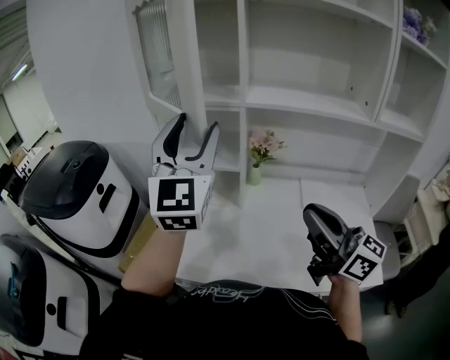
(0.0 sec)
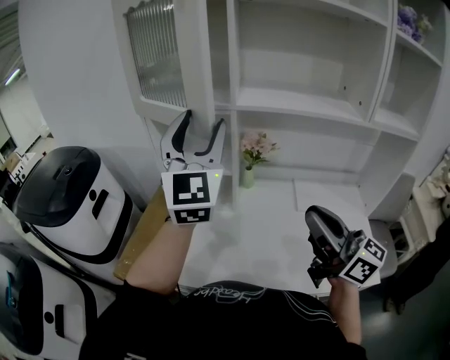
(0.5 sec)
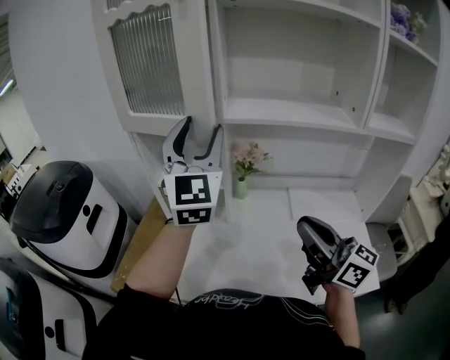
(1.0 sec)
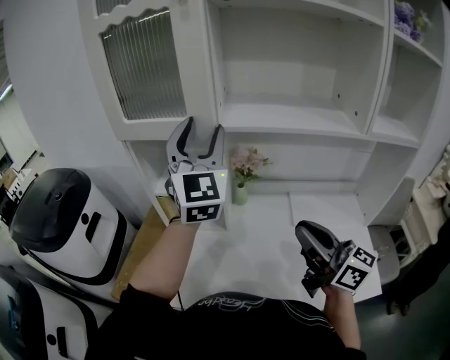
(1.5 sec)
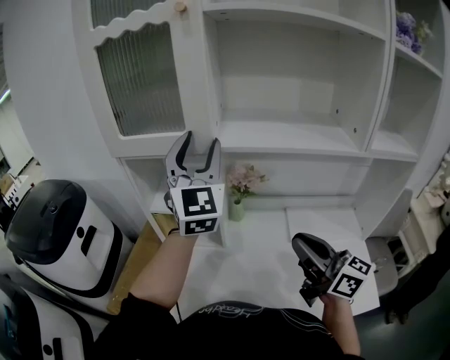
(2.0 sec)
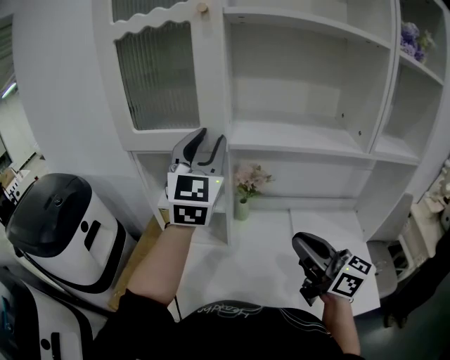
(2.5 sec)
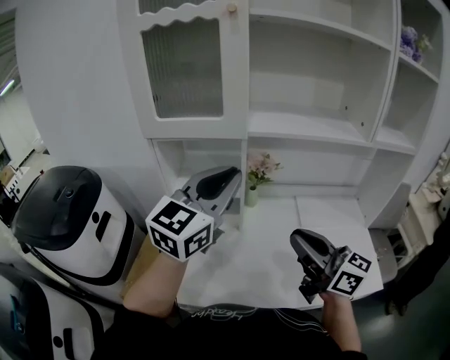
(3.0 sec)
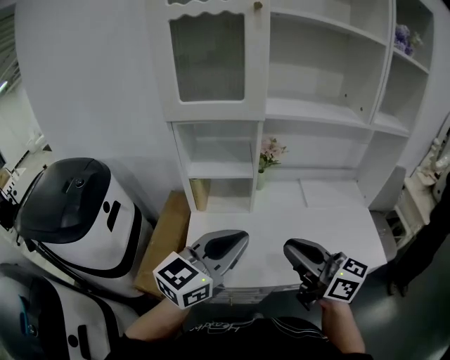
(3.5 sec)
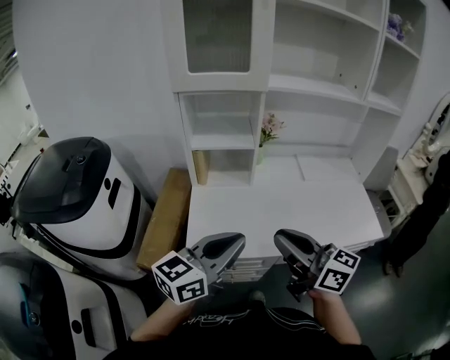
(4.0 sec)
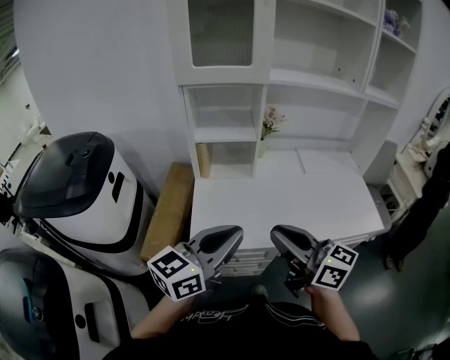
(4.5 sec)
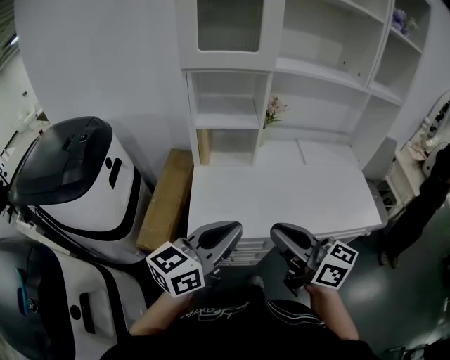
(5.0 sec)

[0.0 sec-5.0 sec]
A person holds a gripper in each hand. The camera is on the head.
0.0 sec to 2.5 sec: The right gripper shifts roughly 10 cm forward, while the left gripper is displaced forward and to the right by some 15 cm, and closes up.
2.5 sec to 5.0 sec: The right gripper is displaced backward and to the left by roughly 35 cm; the left gripper goes some 50 cm backward and downward, swivels roughly 60 degrees, and closes its fingers.

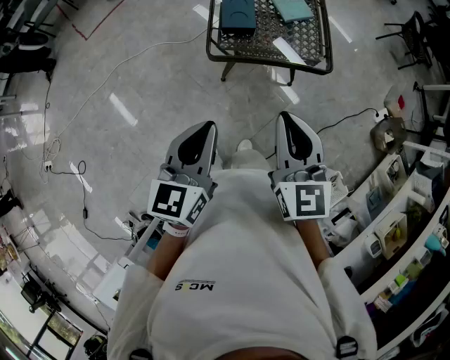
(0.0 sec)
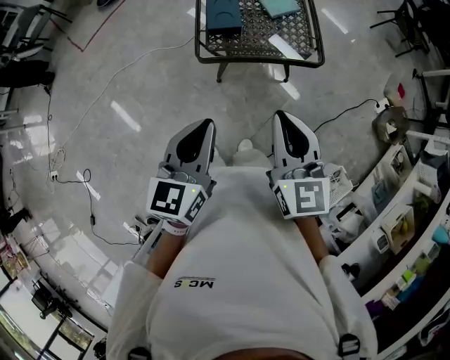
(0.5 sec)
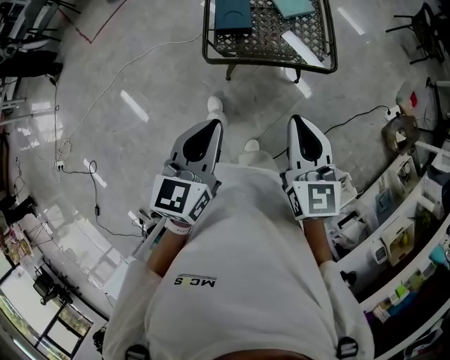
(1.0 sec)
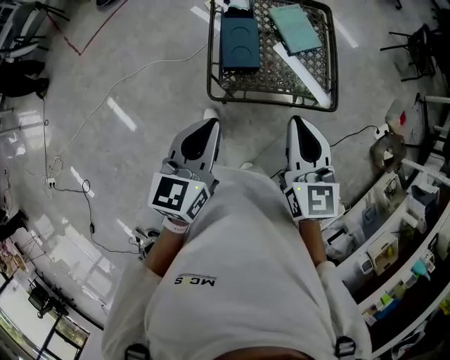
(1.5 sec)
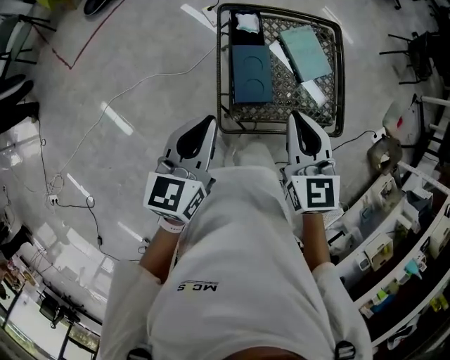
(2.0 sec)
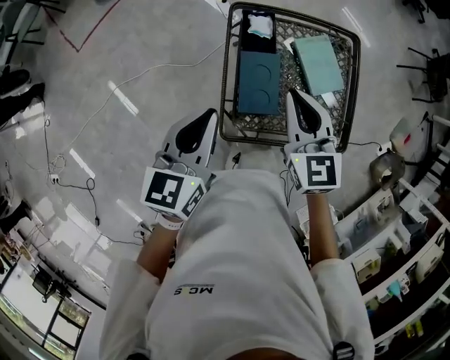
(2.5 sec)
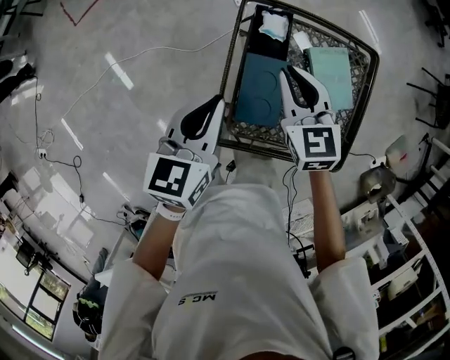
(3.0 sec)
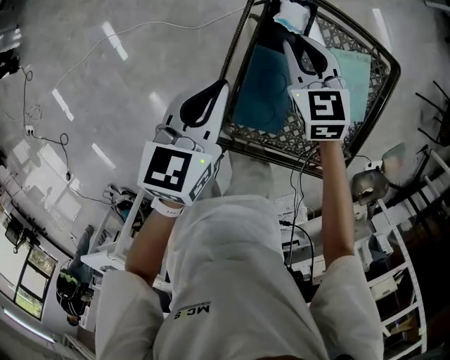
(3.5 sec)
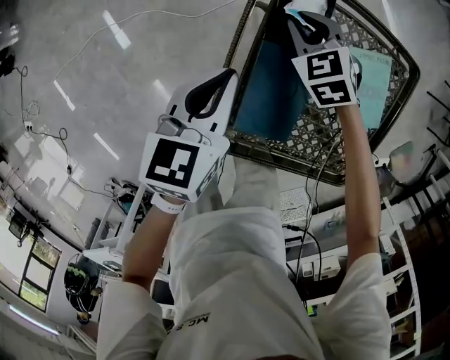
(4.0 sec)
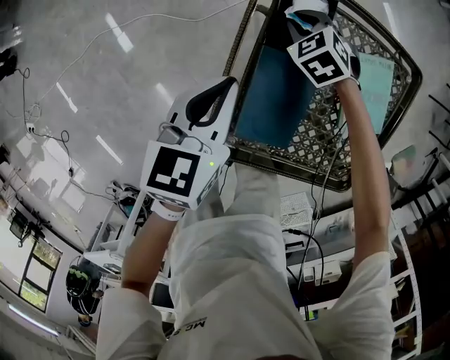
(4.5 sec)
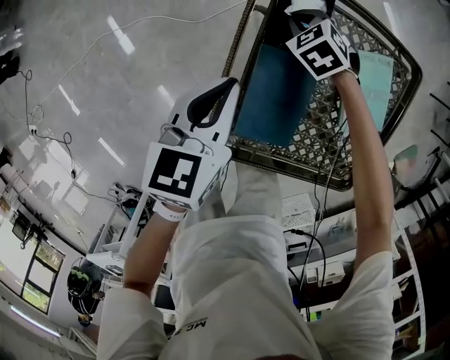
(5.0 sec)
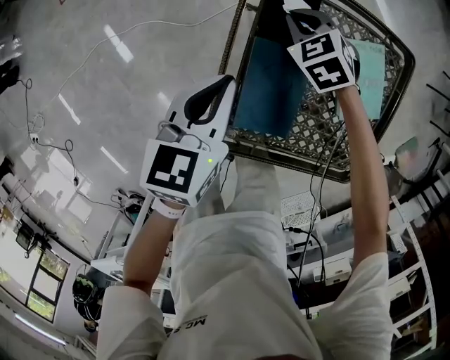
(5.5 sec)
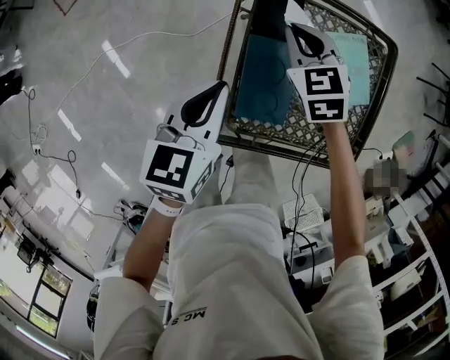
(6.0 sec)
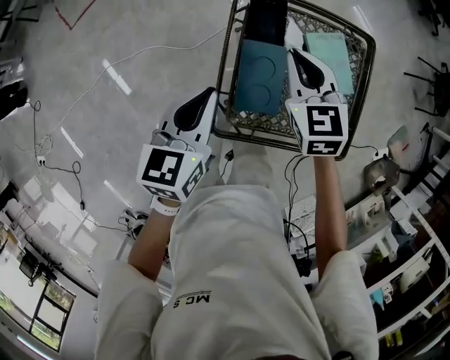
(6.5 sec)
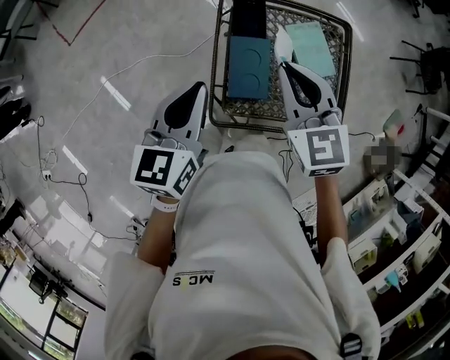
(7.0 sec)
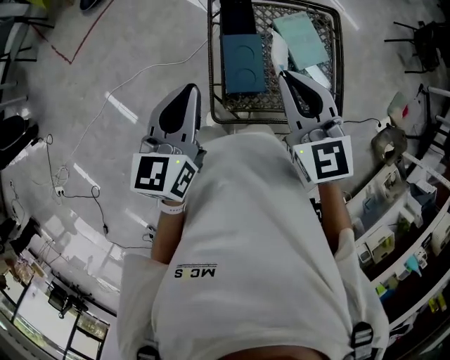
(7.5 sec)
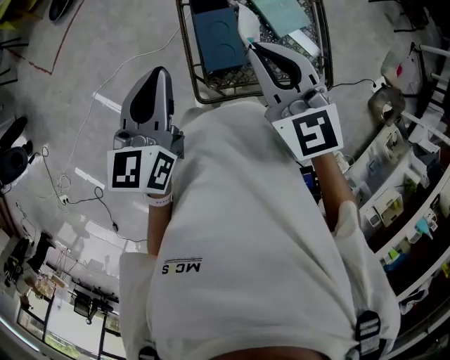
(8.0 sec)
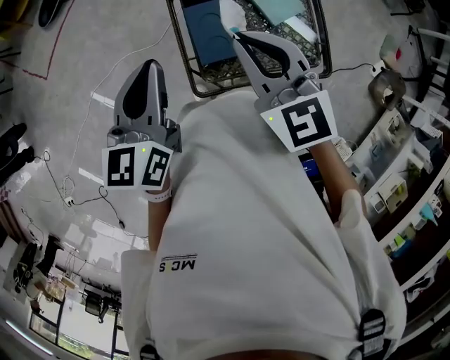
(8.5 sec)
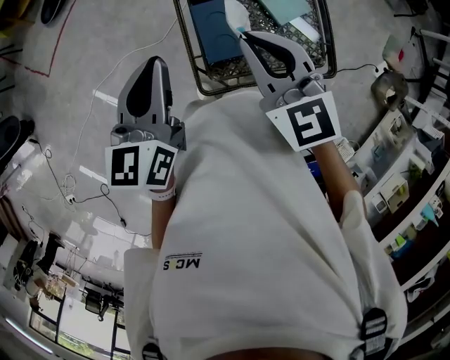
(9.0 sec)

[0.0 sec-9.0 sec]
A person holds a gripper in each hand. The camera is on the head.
0.0 sec to 2.0 sec: The grippers both shift forward by approximately 35 cm.
2.0 sec to 4.5 sec: The left gripper is displaced downward and forward by some 30 cm, and rotates approximately 20 degrees. The right gripper travels downward and forward by about 50 cm, and tilts its fingers about 40 degrees downward.
4.5 sec to 7.0 sec: The left gripper travels upward and backward by approximately 25 cm, while the right gripper moves upward and backward, about 40 cm, and tilts its fingers about 40 degrees upward.
7.0 sec to 9.0 sec: The left gripper moves upward, about 5 cm, while the right gripper moves backward, roughly 5 cm.

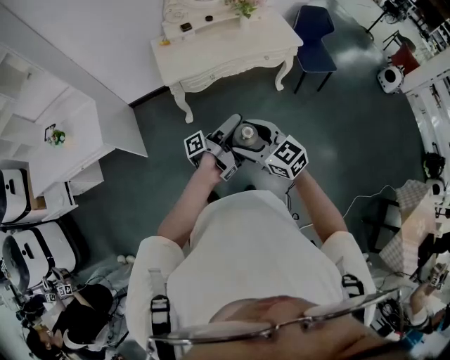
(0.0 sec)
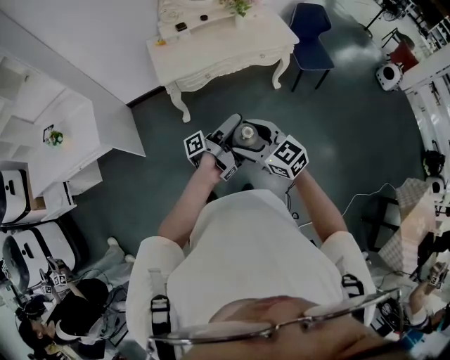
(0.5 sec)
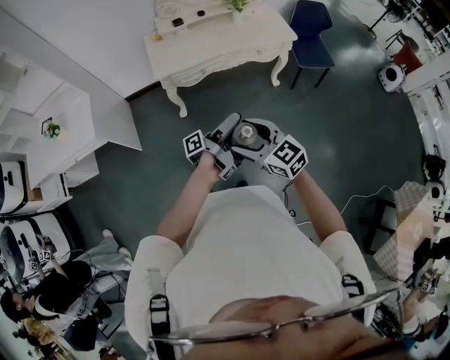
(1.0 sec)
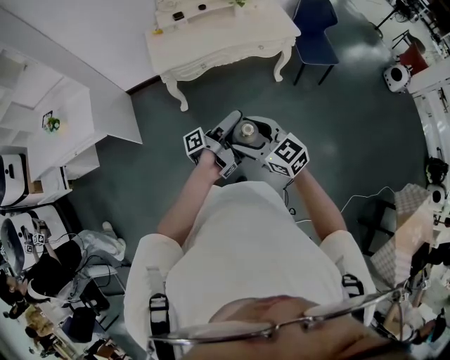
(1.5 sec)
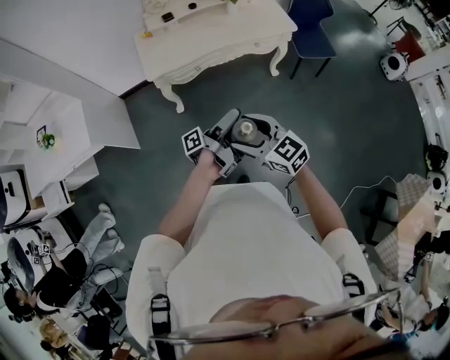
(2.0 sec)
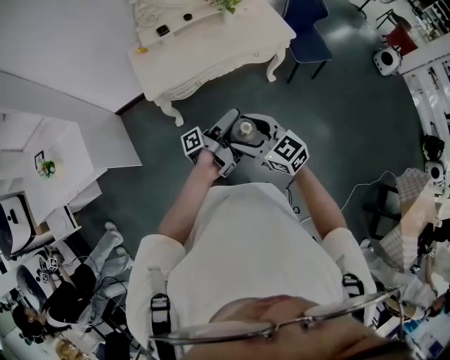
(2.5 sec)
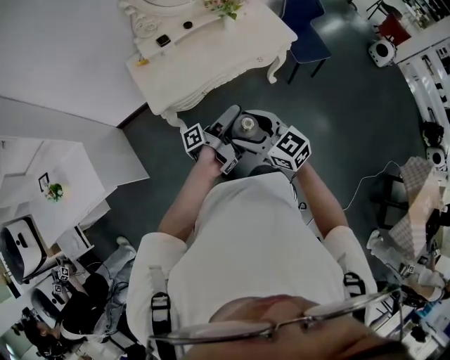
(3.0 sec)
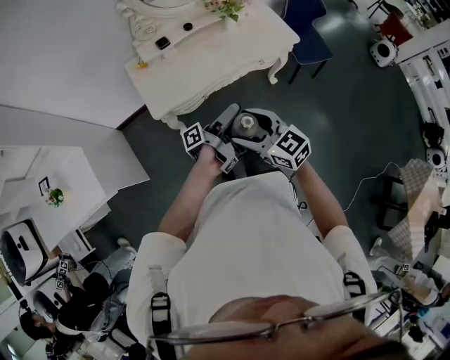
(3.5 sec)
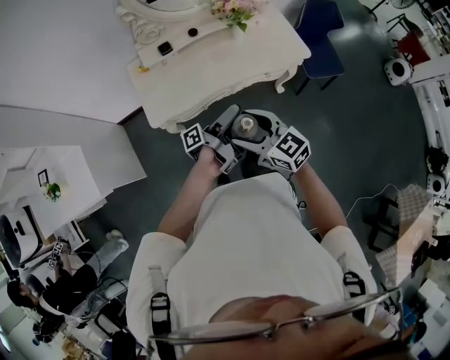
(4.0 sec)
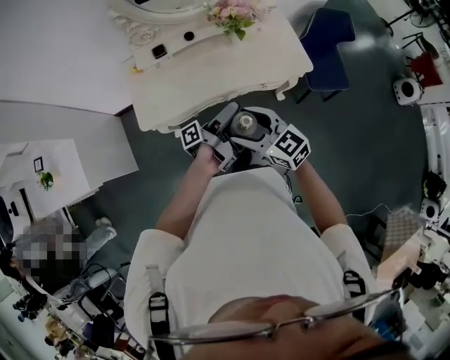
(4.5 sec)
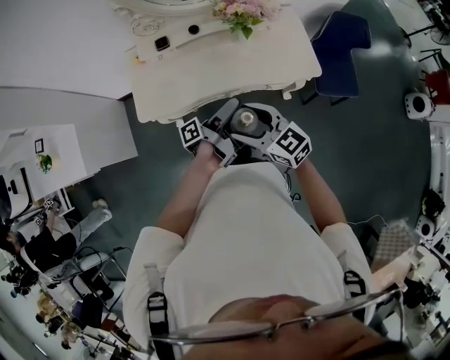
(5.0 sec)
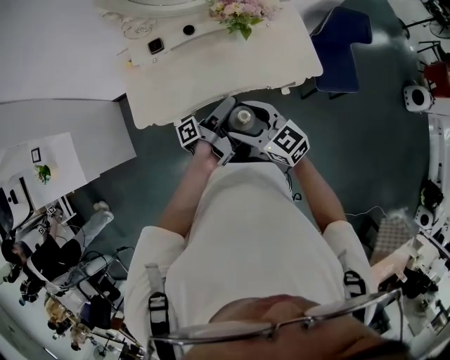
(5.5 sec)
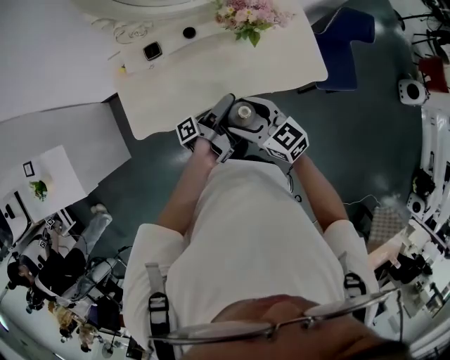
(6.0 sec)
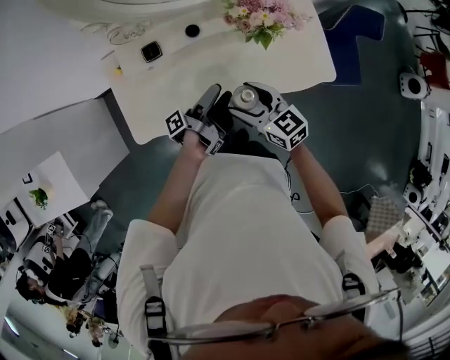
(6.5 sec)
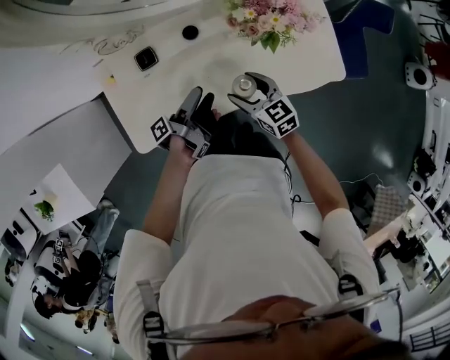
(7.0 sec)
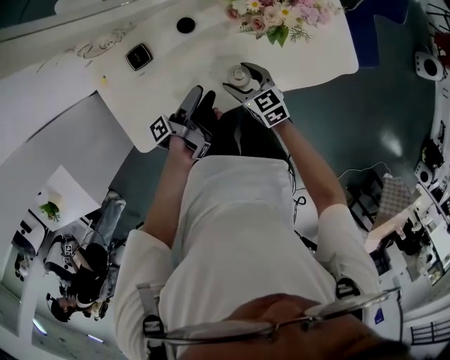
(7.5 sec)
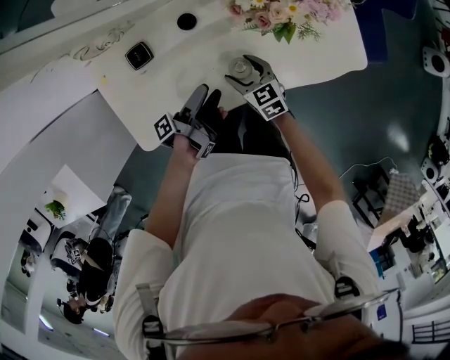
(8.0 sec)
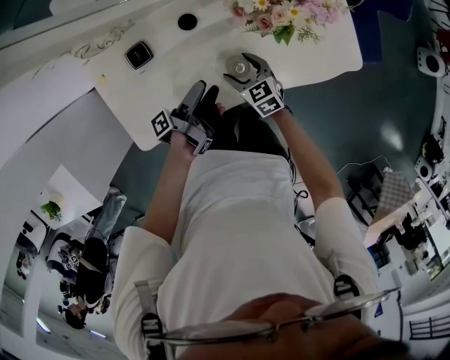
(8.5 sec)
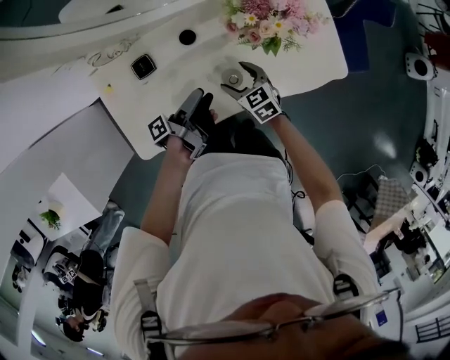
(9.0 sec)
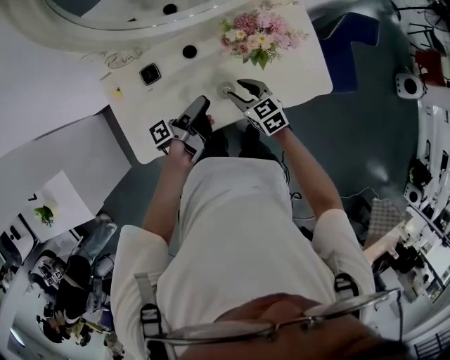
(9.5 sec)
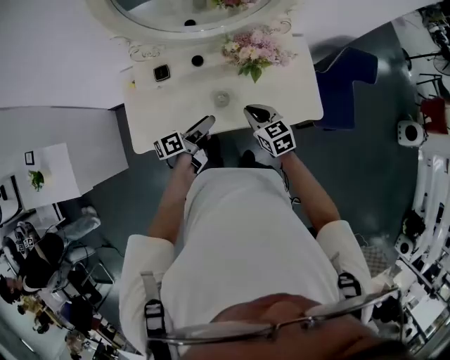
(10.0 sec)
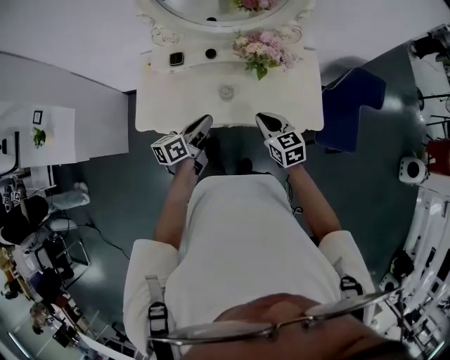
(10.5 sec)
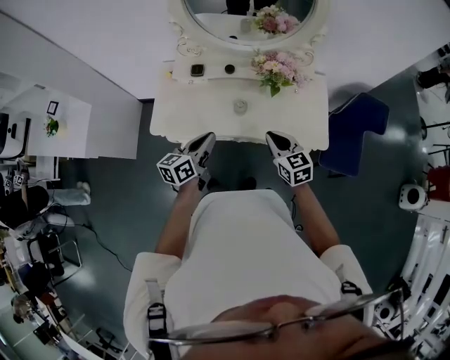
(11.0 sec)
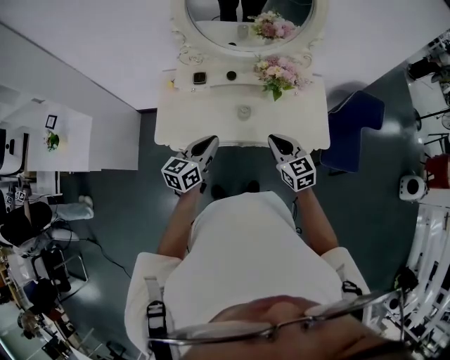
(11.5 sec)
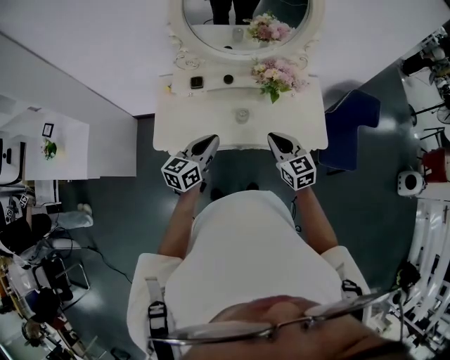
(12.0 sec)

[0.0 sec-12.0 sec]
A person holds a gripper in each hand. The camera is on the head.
0.0 sec to 2.0 sec: The right gripper shifts by approximately 10 cm.
2.0 sec to 4.0 sec: The right gripper changes place by roughly 35 cm.
4.0 sec to 6.0 sec: The right gripper moves approximately 25 cm.
6.0 sec to 8.0 sec: The right gripper heads downward, covering roughly 30 cm, and rotates approximately 20 degrees.
8.0 sec to 10.0 sec: The right gripper is displaced upward by some 20 cm, and closes its fingers.
10.0 sec to 12.0 sec: The right gripper is displaced upward by about 10 cm.

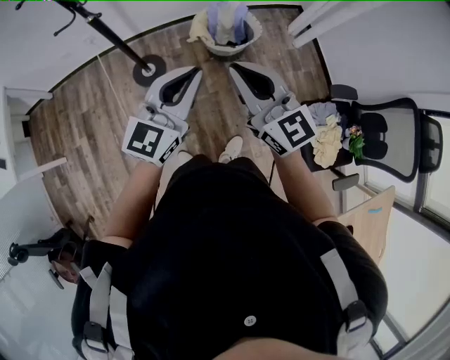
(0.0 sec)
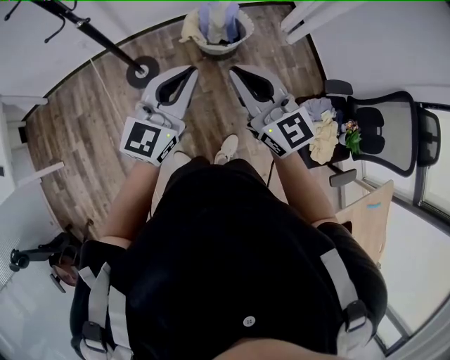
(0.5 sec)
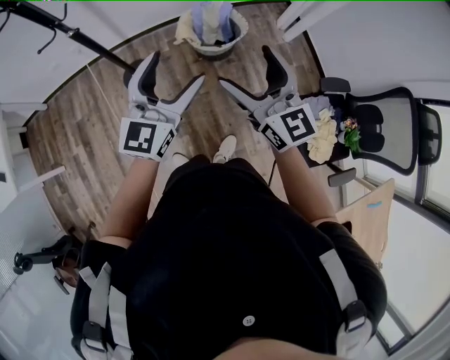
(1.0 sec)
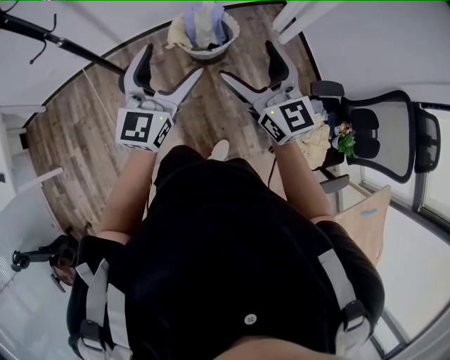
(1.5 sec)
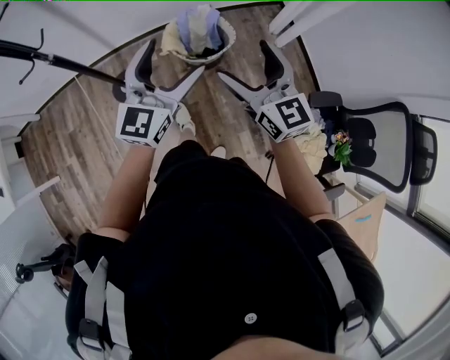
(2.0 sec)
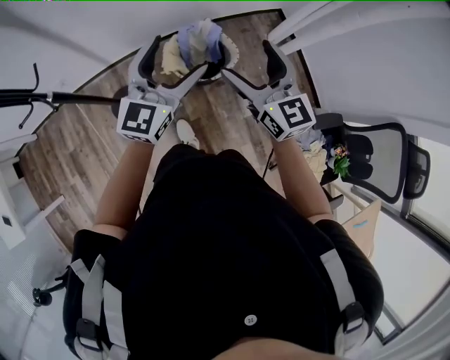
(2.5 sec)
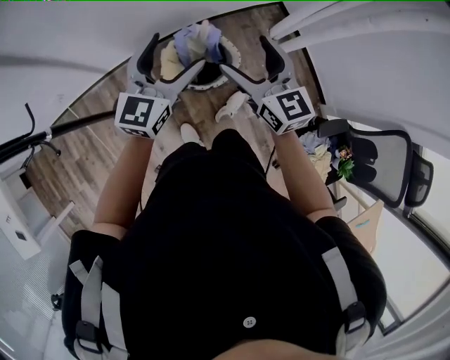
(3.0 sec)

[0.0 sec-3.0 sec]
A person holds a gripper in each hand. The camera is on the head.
0.0 sec to 1.5 sec: The left gripper travels to the right and forward by about 15 cm, and opens up. The right gripper shifts some 20 cm to the right, and opens its fingers.
1.5 sec to 3.0 sec: The grippers both shift forward by about 40 cm.
